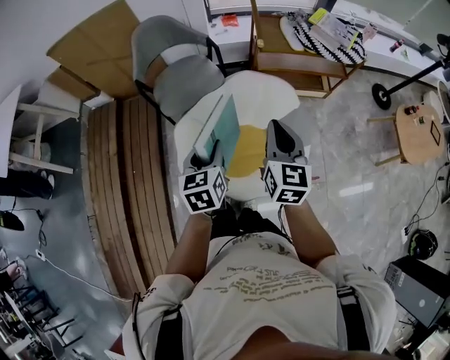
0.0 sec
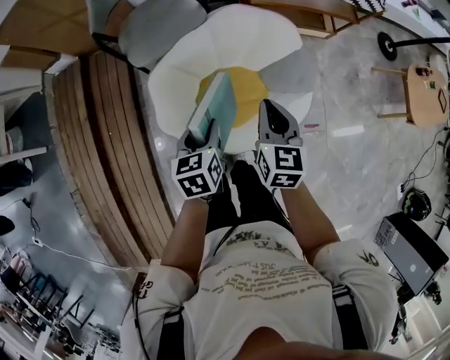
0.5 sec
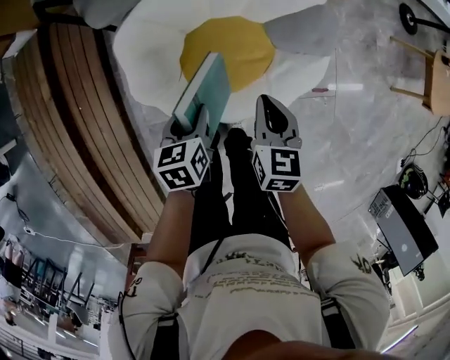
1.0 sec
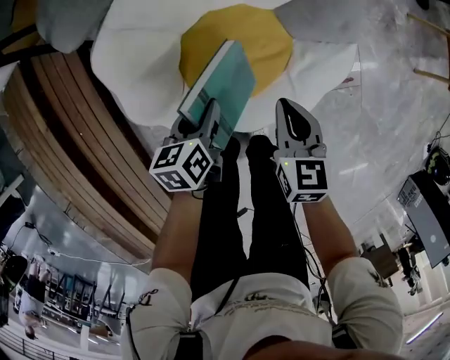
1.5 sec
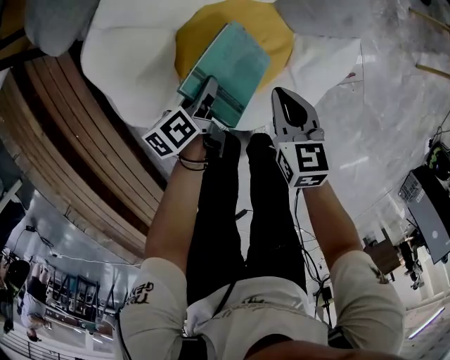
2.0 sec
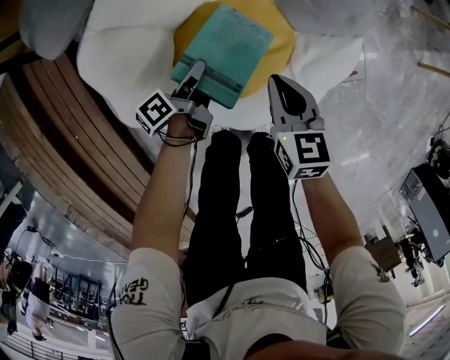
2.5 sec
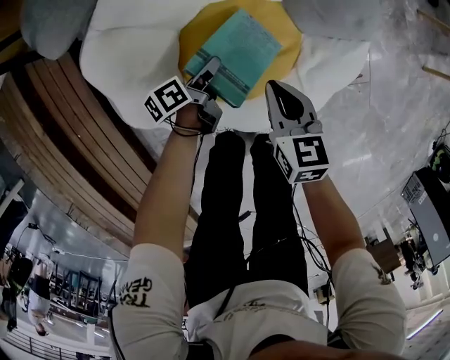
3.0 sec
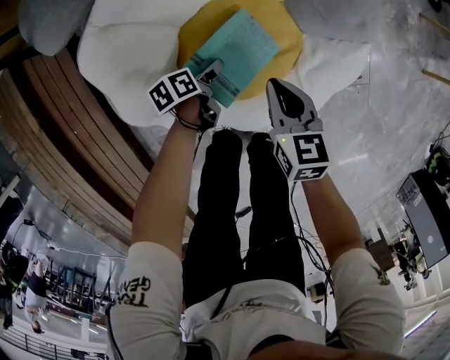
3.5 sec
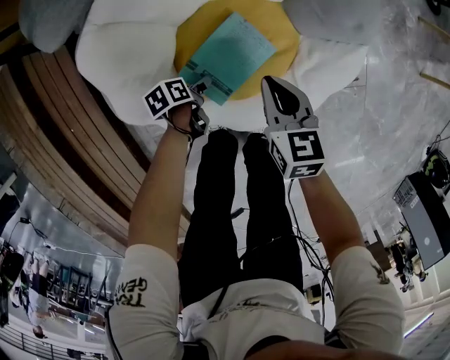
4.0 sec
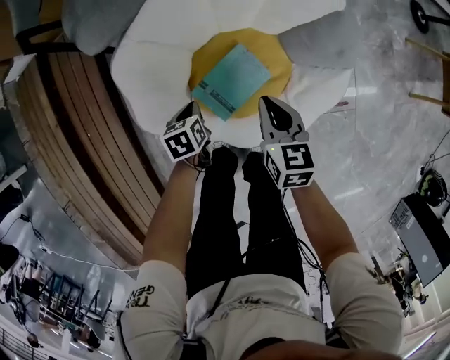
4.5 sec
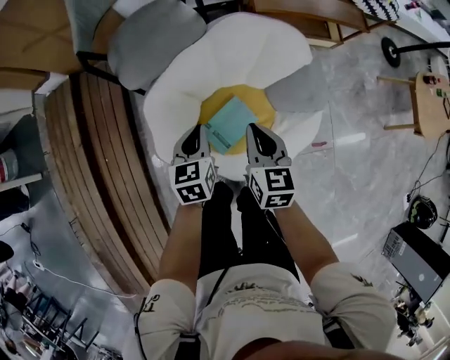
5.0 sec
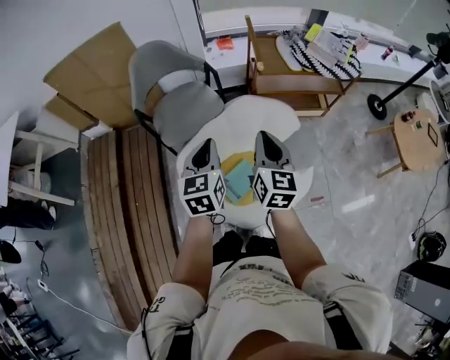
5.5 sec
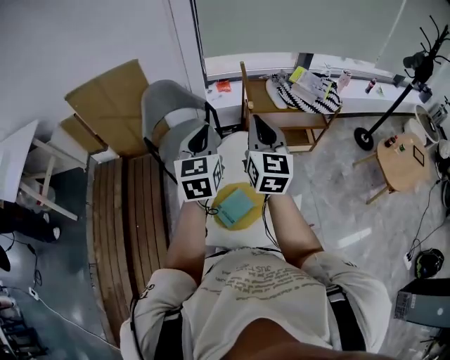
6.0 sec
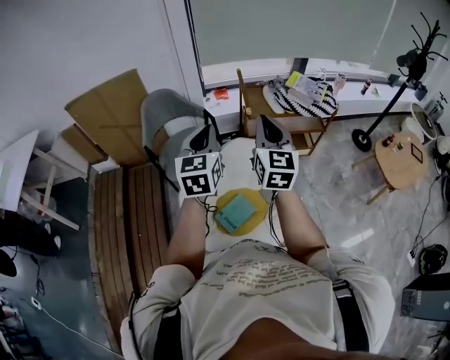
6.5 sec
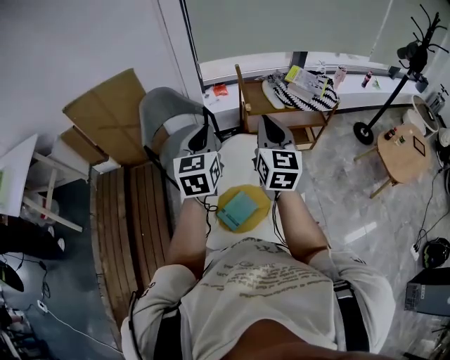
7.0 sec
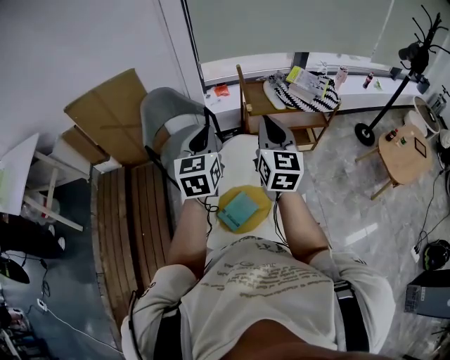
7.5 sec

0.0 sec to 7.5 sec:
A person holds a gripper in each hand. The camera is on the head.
0.0 sec to 2.0 sec: Both grippers move downward, about 50 cm. The left gripper rotates around the line of its fingers by about 40 degrees, counterclockwise from behind. The right gripper turns by roughly 30 degrees.
2.0 sec to 4.0 sec: The left gripper moves downward, approximately 15 cm, changes its angle by approximately 30 degrees, and opens. The right gripper shifts by approximately 5 cm.
4.0 sec to 5.5 sec: The two grippers go some 60 cm upward. The left gripper angles its fingers upward, by approximately 40 degrees, and closes. Meanwhile the right gripper tips its fingers upward by roughly 30 degrees.
5.5 sec to 7.5 sec: The grippers both shift upward by approximately 20 cm.

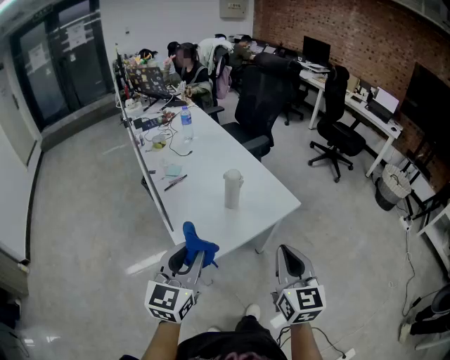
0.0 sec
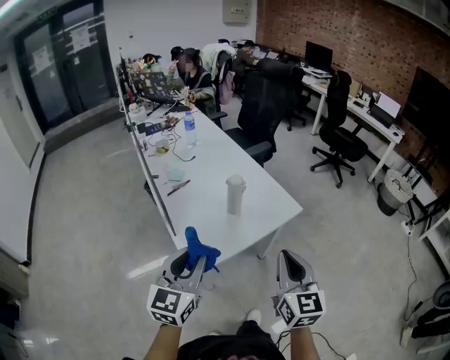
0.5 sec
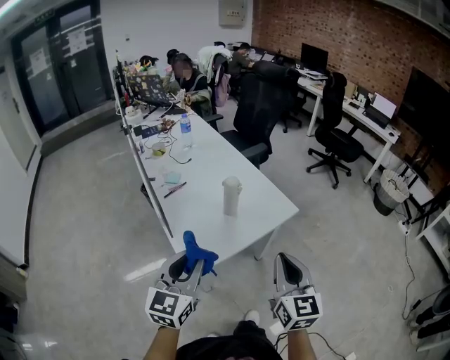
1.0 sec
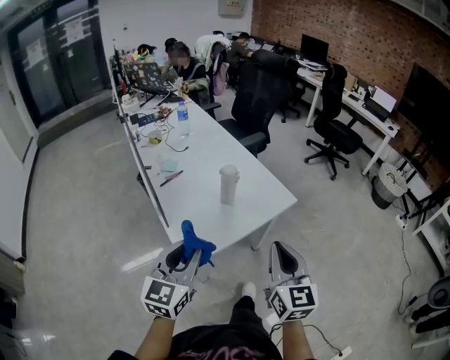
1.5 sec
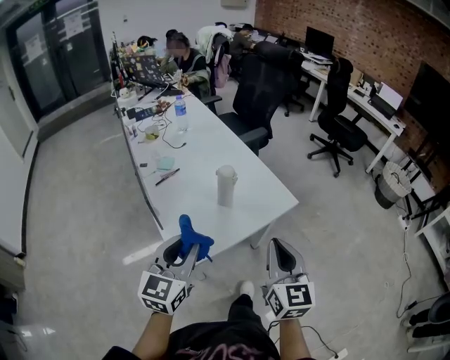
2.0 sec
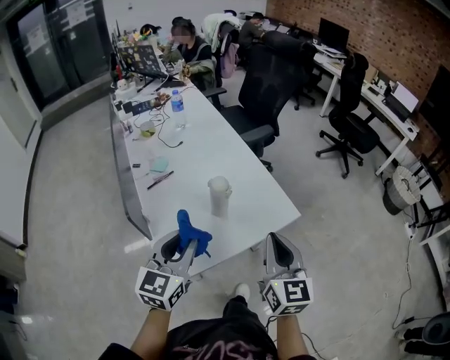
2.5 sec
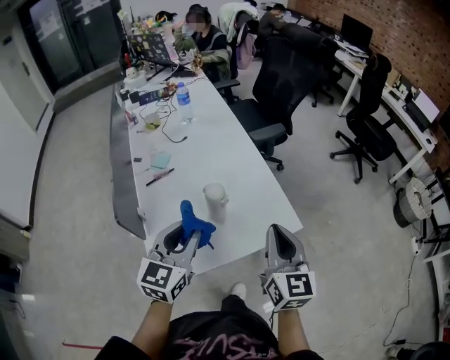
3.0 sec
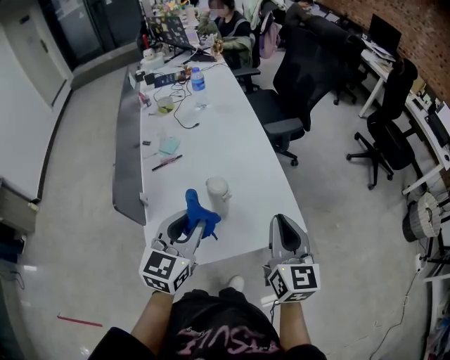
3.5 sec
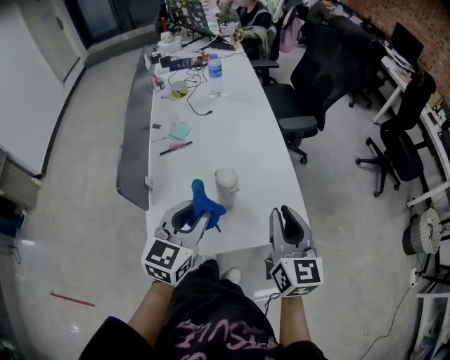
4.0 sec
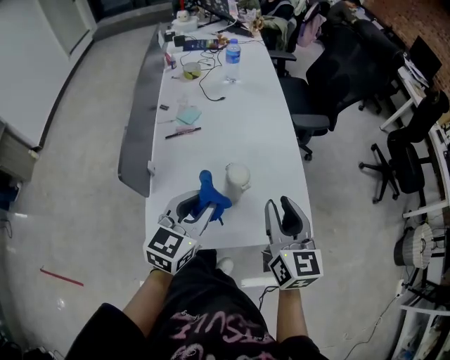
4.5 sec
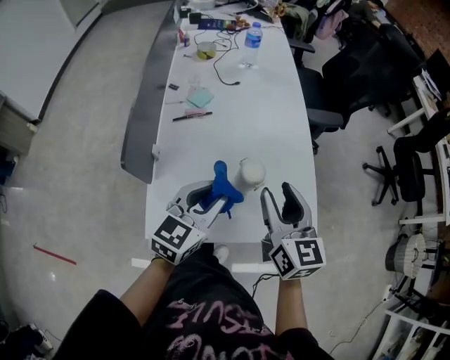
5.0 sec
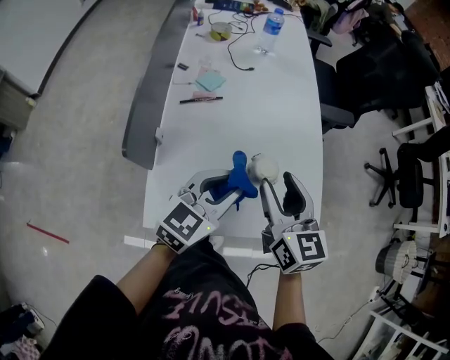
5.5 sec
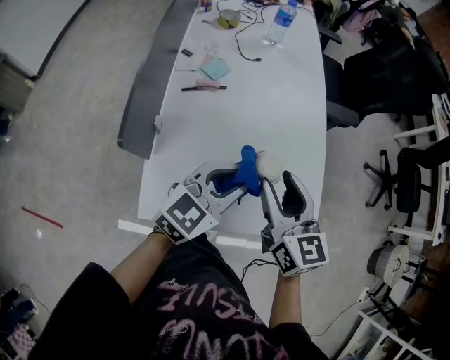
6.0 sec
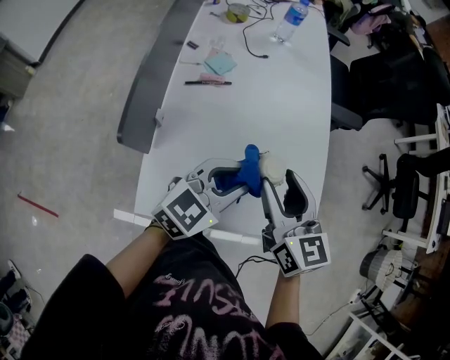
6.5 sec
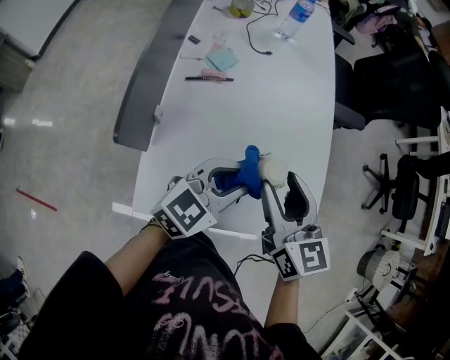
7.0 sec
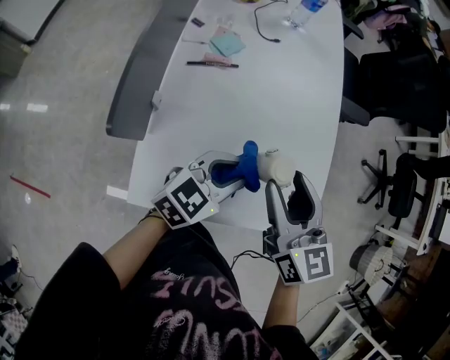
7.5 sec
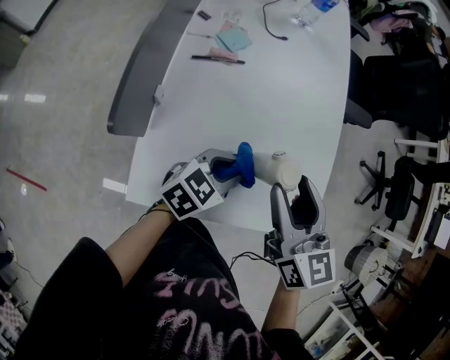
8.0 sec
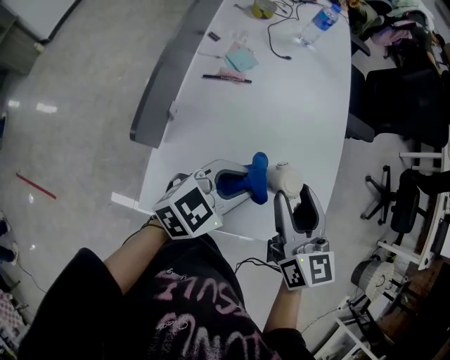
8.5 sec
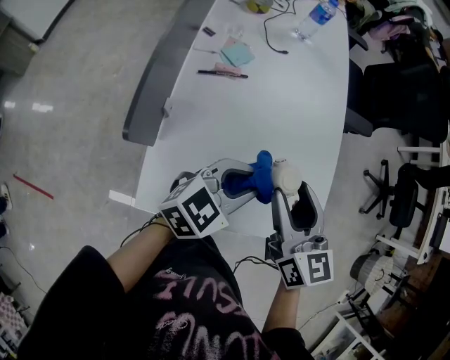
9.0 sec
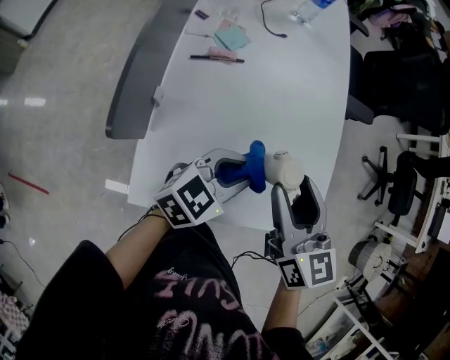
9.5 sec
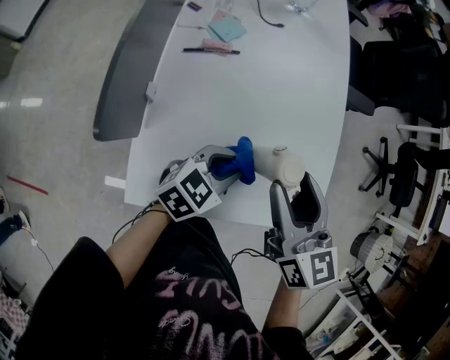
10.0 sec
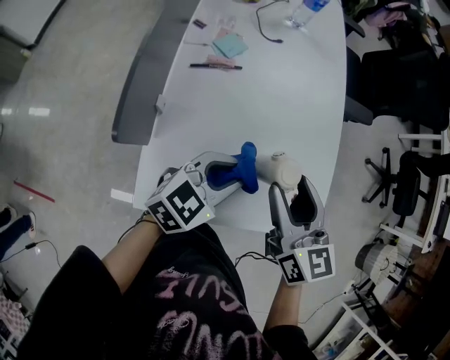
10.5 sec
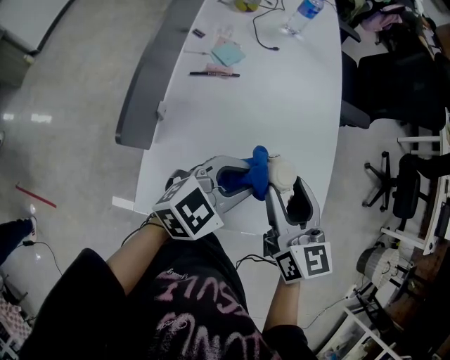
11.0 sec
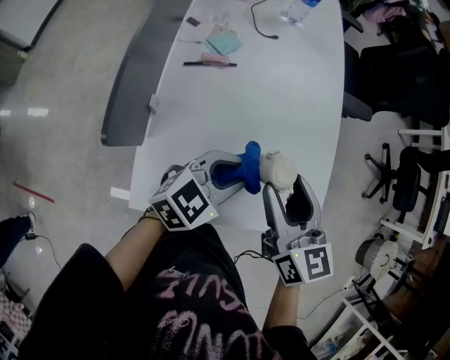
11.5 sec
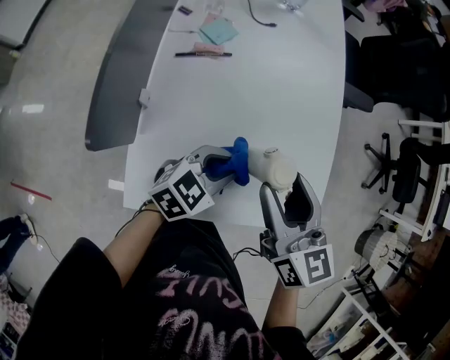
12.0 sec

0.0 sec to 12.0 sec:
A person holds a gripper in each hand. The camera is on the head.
0.0 sec to 2.0 sec: The left gripper is displaced forward by about 5 cm. Meanwhile the right gripper ends up roughly 5 cm from where it was.
2.0 sec to 4.0 sec: The right gripper goes some 25 cm forward, and swivels approximately 20 degrees. The left gripper goes approximately 20 cm forward and to the right.
4.0 sec to 6.0 sec: The left gripper moves forward and downward, approximately 10 cm. Meanwhile the right gripper goes some 15 cm to the left and forward, rotates some 20 degrees, and opens.
6.0 sec to 8.0 sec: The left gripper travels downward by about 10 cm.
8.0 sec to 10.0 sec: The left gripper moves some 10 cm upward and comes back.
10.0 sec to 12.0 sec: The left gripper reaches roughly 10 cm upward, then returns.

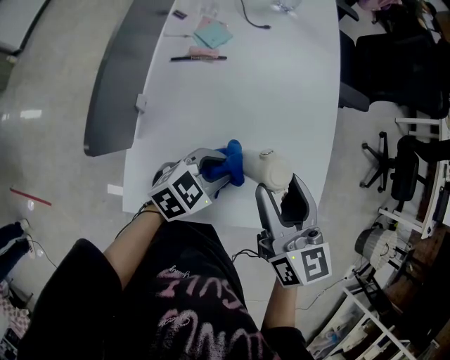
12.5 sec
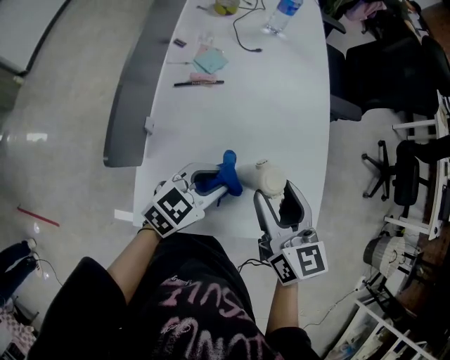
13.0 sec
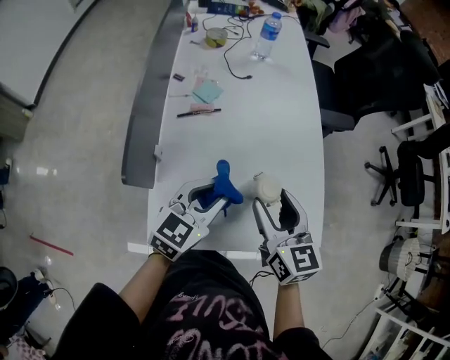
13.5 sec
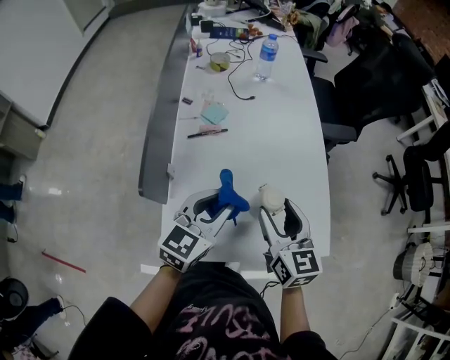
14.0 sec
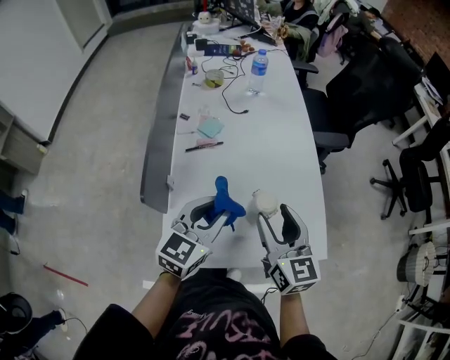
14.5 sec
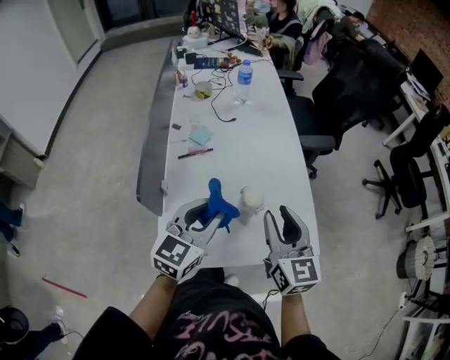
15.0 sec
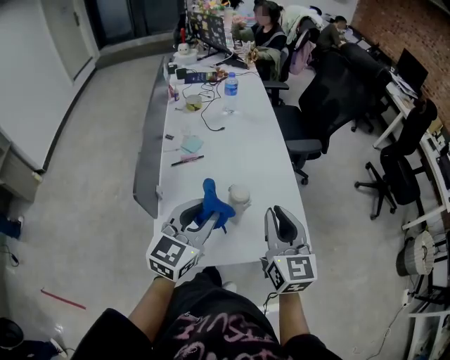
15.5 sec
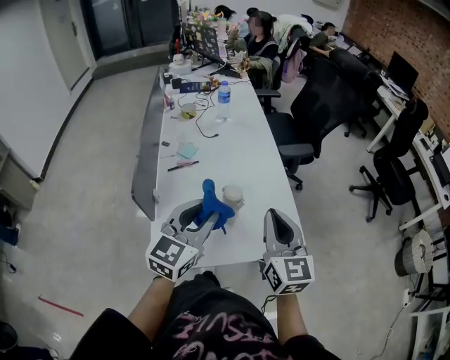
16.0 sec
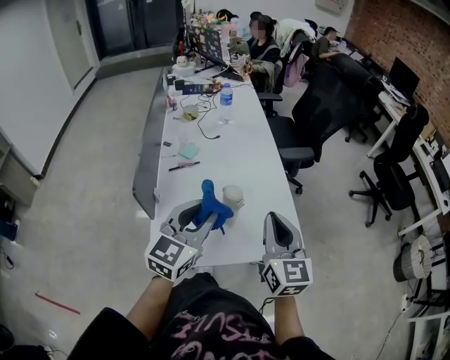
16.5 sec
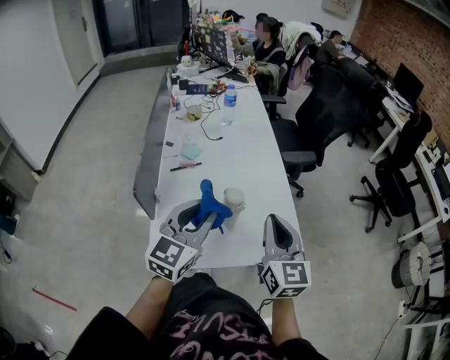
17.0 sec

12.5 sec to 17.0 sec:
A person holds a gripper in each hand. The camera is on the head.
12.5 sec to 14.5 sec: The left gripper heads upward, covering roughly 15 cm, and turns by about 30 degrees.
14.5 sec to 17.0 sec: The right gripper heads to the right, backward and upward, covering roughly 15 cm, and closes. The left gripper goes about 10 cm upward, backward and to the right.

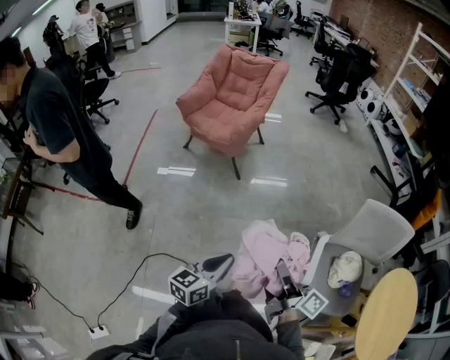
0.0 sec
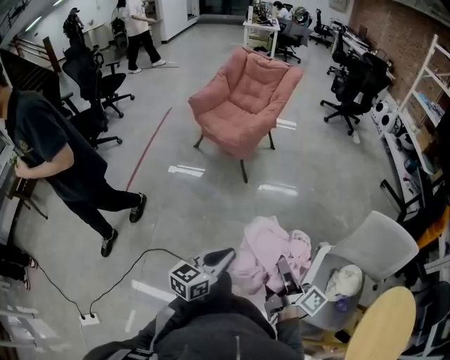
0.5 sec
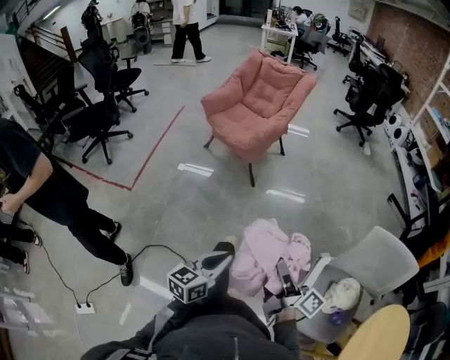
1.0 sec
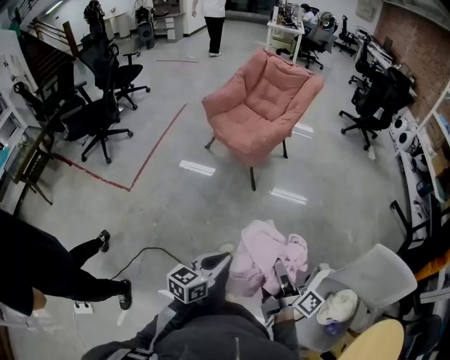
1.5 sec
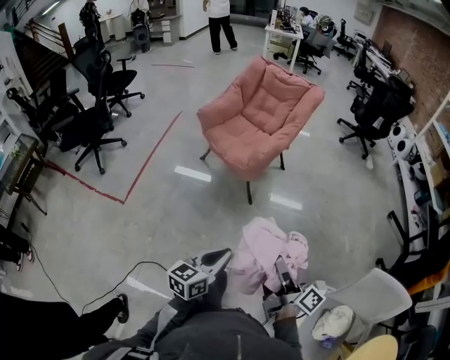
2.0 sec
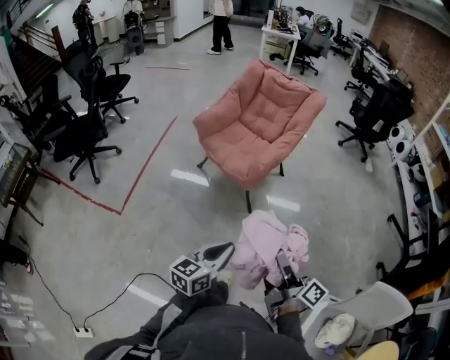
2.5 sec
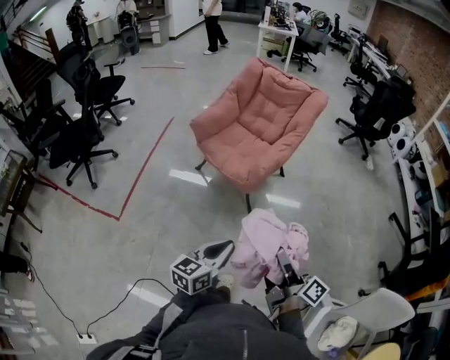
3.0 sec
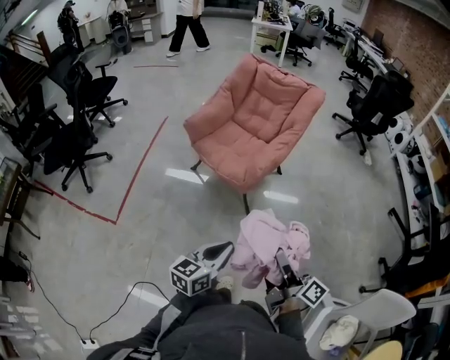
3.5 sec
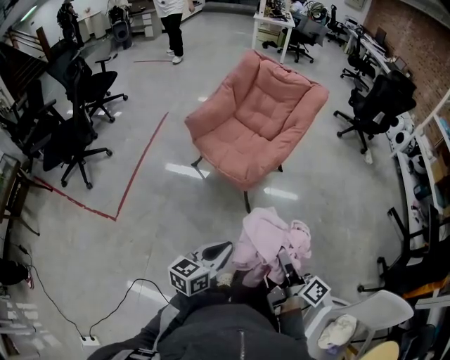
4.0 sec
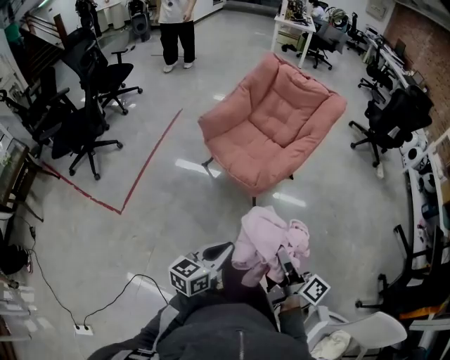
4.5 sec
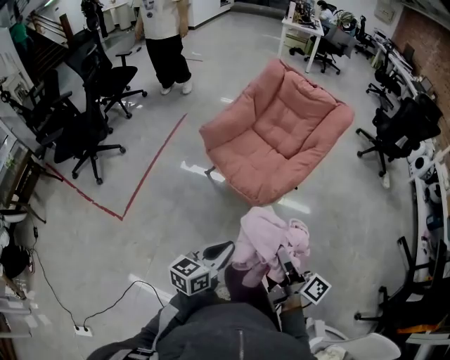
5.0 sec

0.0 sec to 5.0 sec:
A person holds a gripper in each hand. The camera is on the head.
0.0 sec to 2.5 sec: Both grippers travel together forward, approximately 30 cm.
2.5 sec to 5.0 sec: Both grippers move forward, roughly 20 cm.
